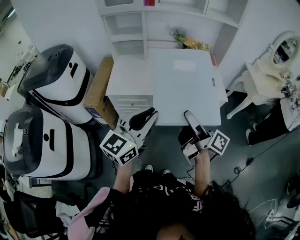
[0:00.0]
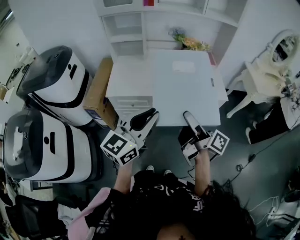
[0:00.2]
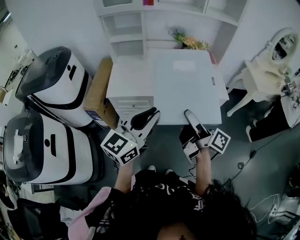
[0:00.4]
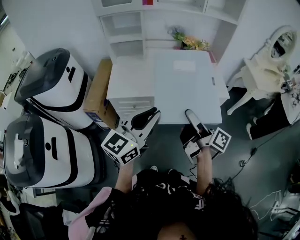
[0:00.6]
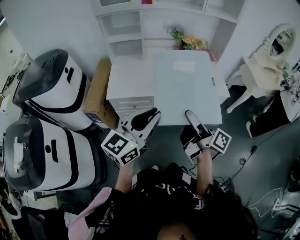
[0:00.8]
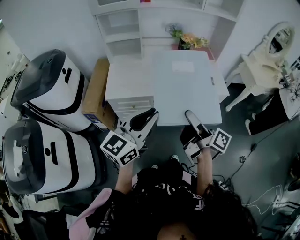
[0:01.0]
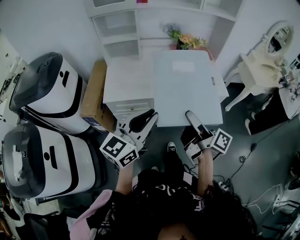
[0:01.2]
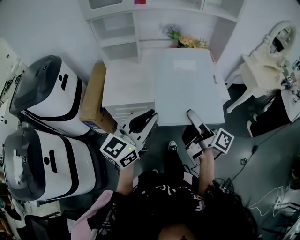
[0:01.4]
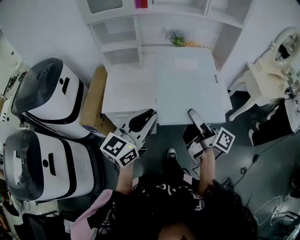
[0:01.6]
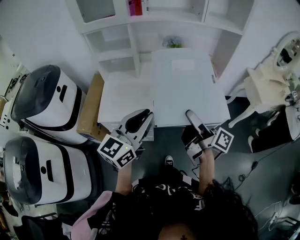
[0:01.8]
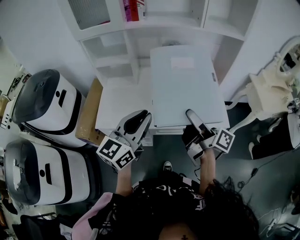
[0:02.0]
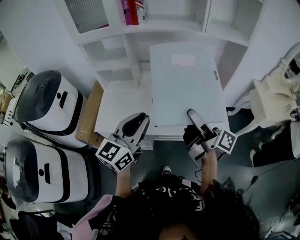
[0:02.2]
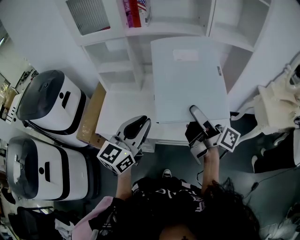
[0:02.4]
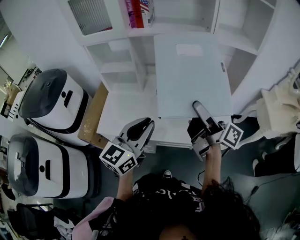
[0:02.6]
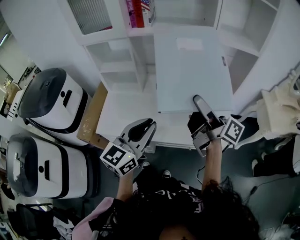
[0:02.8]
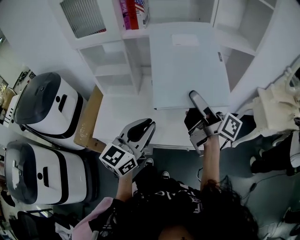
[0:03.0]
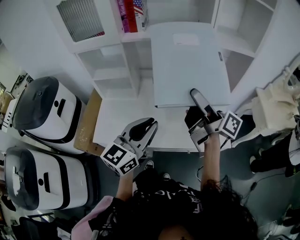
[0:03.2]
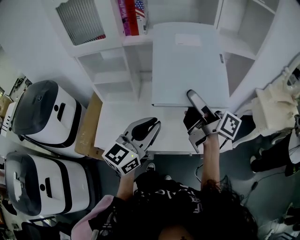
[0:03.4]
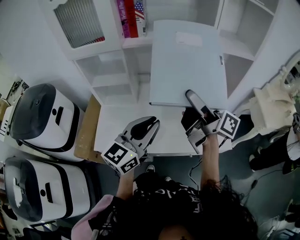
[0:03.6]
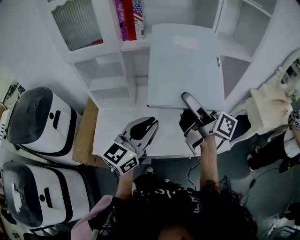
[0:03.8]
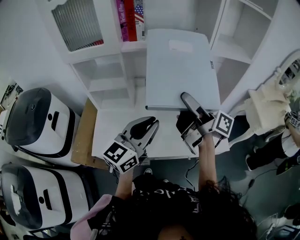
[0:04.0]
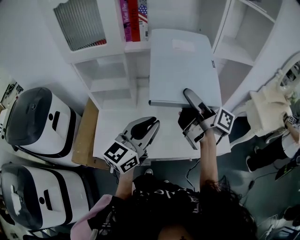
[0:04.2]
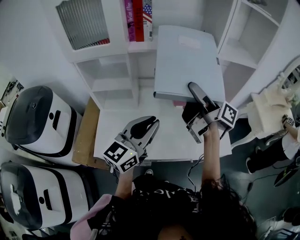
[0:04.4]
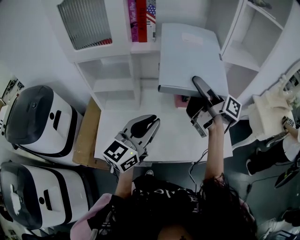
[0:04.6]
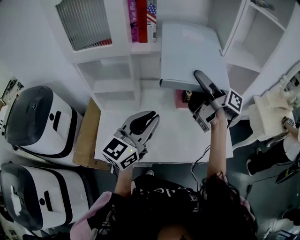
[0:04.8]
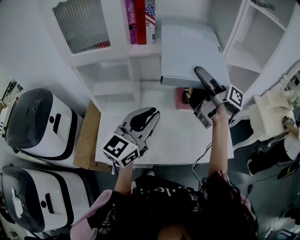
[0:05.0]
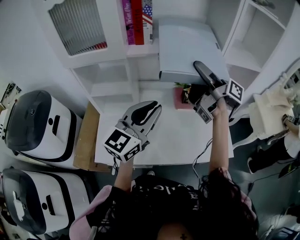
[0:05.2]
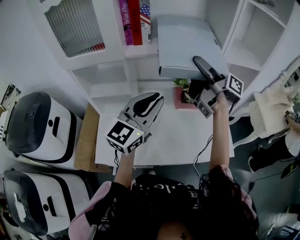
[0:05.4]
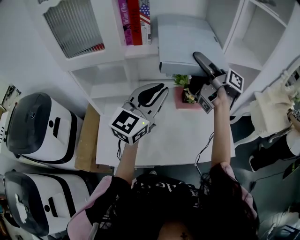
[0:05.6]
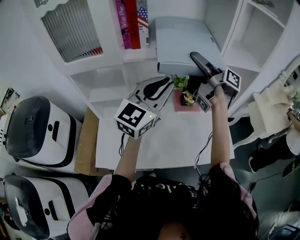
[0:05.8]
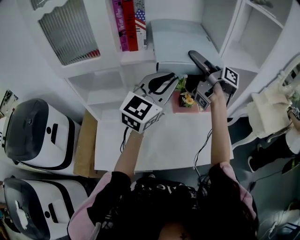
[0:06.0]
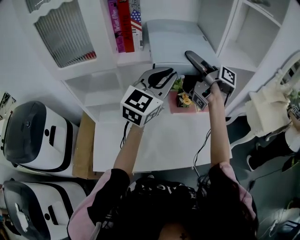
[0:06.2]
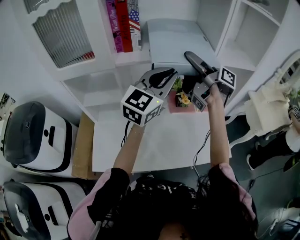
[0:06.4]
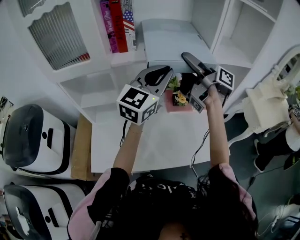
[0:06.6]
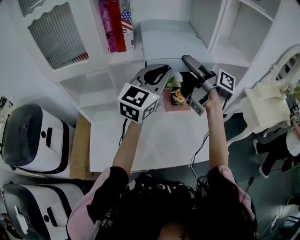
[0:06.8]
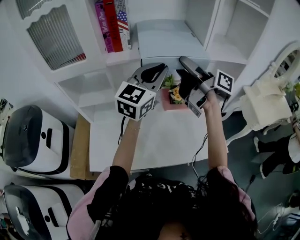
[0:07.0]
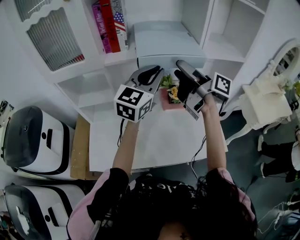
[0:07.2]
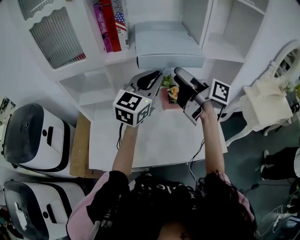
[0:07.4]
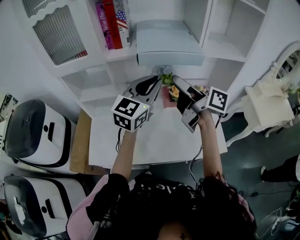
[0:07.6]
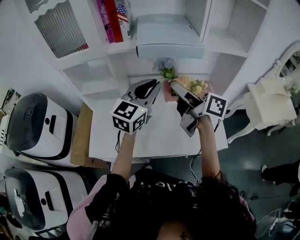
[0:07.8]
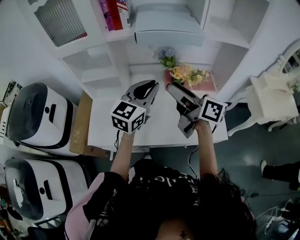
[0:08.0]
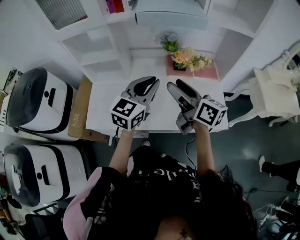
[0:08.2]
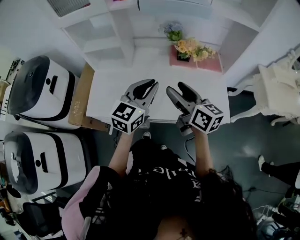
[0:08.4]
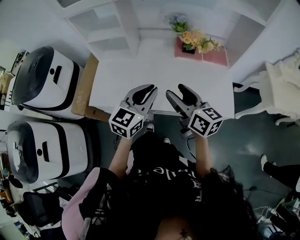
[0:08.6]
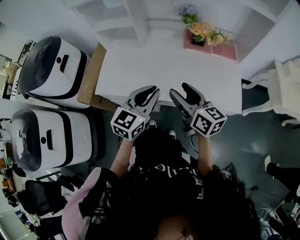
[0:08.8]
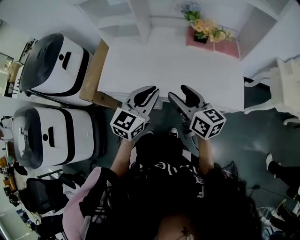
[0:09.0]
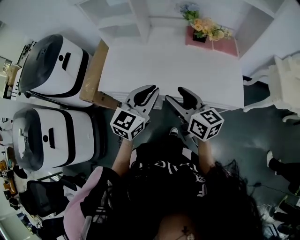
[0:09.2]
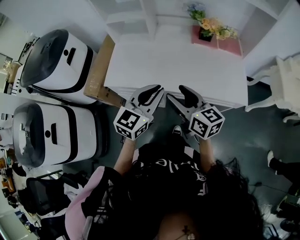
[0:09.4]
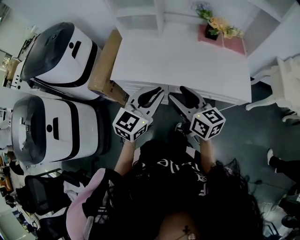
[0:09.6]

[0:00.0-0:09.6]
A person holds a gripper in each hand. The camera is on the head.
0.0 to 1.6 s: The two grippers go about 15 cm forward.
1.6 to 3.2 s: The right gripper shifts about 30 cm forward and upward, while the left gripper shifts approximately 20 cm forward and to the right.
3.2 to 4.8 s: The left gripper is displaced forward and to the left by about 10 cm. The right gripper shifts about 15 cm forward.
4.8 to 6.4 s: The left gripper shifts approximately 20 cm forward, to the right and upward. Meanwhile the right gripper goes approximately 10 cm forward.
6.4 to 8.0 s: Both grippers move backward and downward, approximately 20 cm. The right gripper swivels approximately 30 degrees.
8.0 to 9.6 s: The left gripper shifts roughly 35 cm backward, to the left and downward. Meanwhile the right gripper goes some 35 cm backward, downward and to the left, and changes its angle by about 20 degrees.

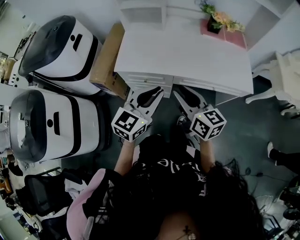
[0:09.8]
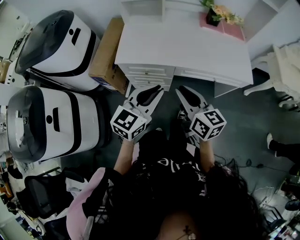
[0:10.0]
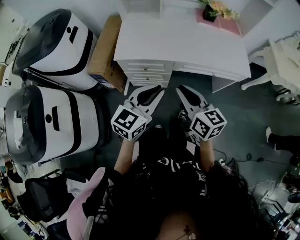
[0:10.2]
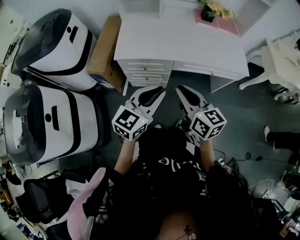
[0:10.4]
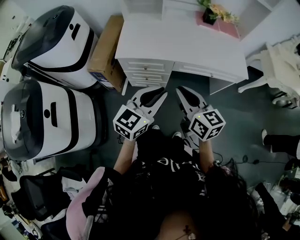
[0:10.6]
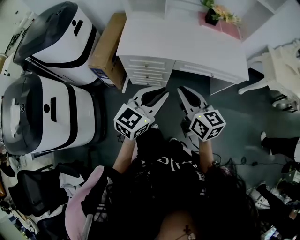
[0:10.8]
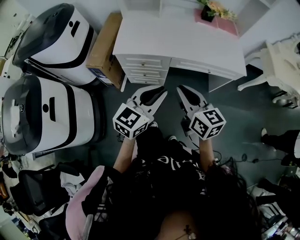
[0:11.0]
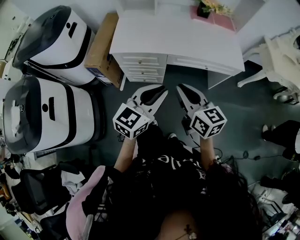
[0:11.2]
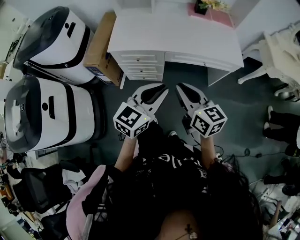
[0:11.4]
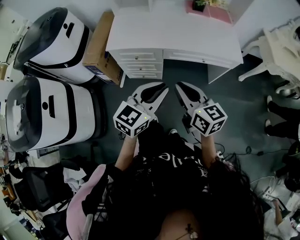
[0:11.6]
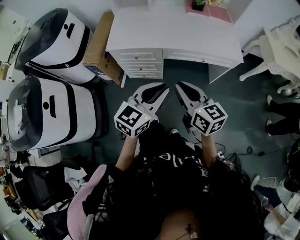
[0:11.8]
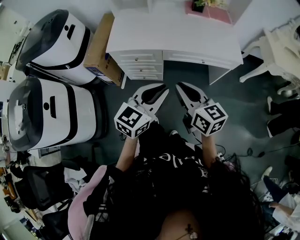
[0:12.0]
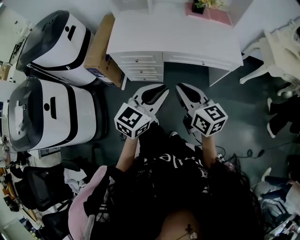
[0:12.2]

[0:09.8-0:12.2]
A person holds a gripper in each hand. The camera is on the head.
9.8 to 11.0 s: The two grippers go about 10 cm backward.
11.0 to 12.2 s: The two grippers go approximately 10 cm to the right.

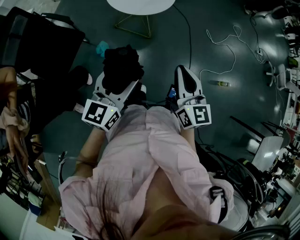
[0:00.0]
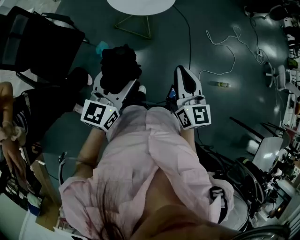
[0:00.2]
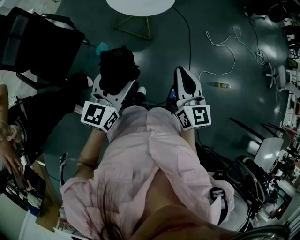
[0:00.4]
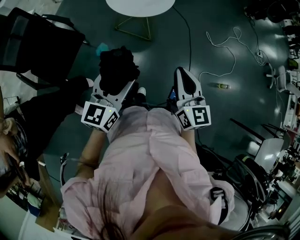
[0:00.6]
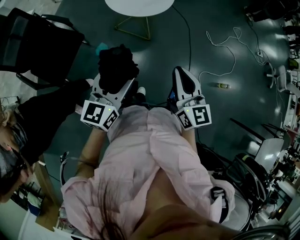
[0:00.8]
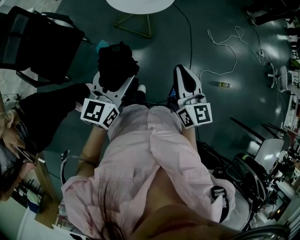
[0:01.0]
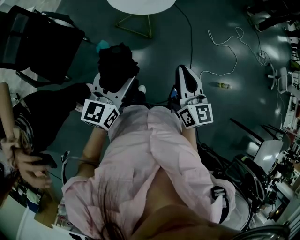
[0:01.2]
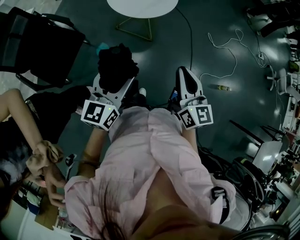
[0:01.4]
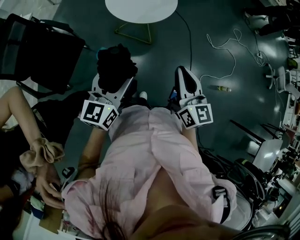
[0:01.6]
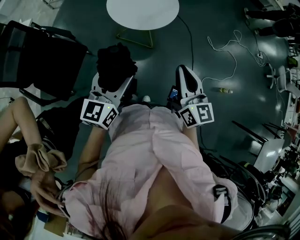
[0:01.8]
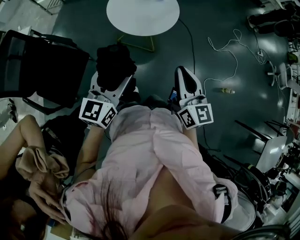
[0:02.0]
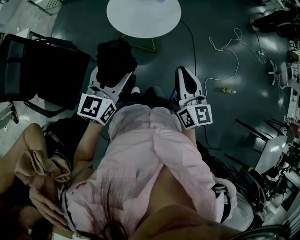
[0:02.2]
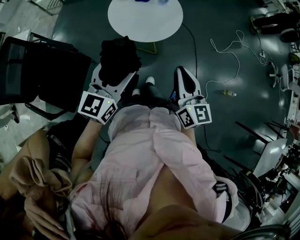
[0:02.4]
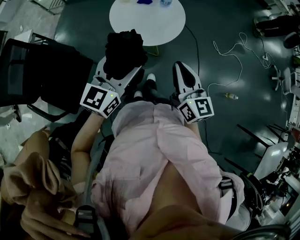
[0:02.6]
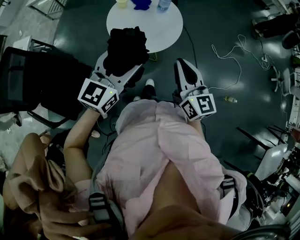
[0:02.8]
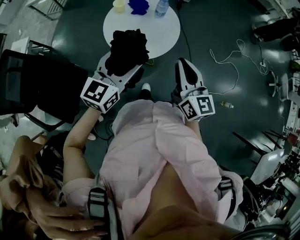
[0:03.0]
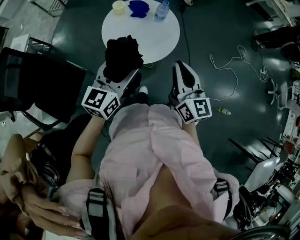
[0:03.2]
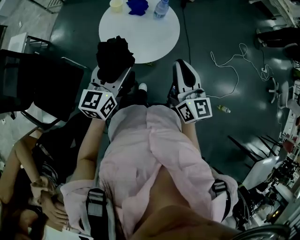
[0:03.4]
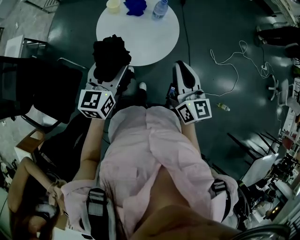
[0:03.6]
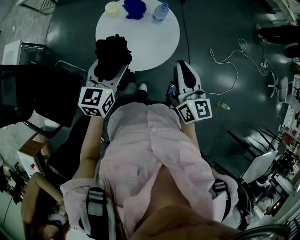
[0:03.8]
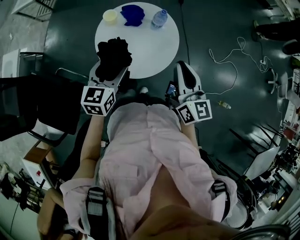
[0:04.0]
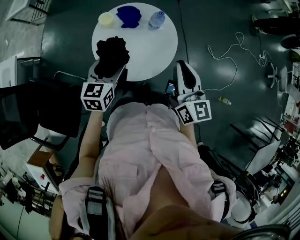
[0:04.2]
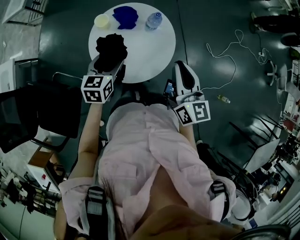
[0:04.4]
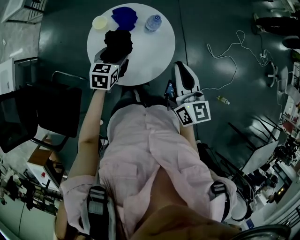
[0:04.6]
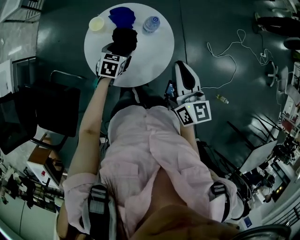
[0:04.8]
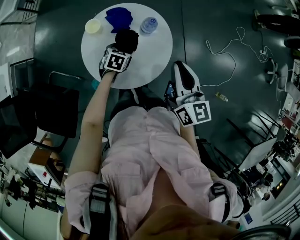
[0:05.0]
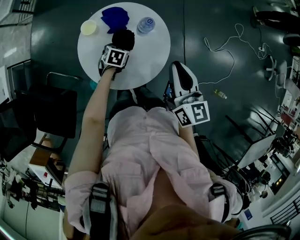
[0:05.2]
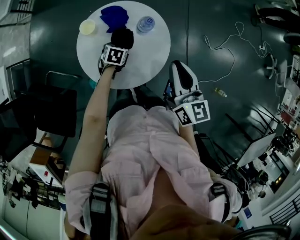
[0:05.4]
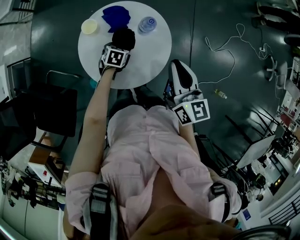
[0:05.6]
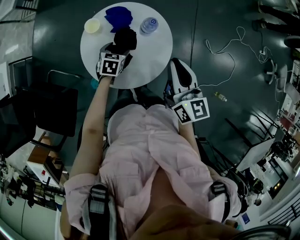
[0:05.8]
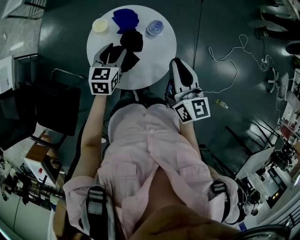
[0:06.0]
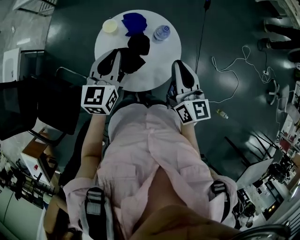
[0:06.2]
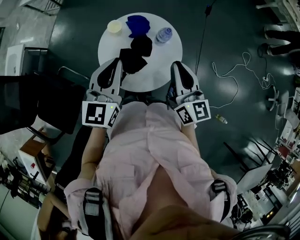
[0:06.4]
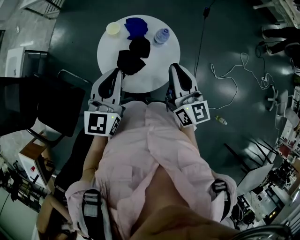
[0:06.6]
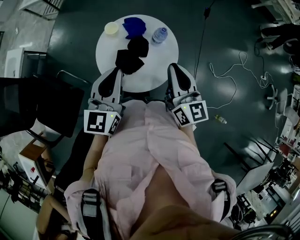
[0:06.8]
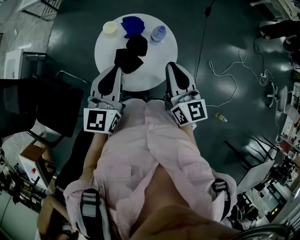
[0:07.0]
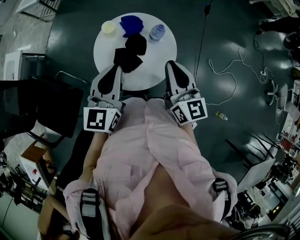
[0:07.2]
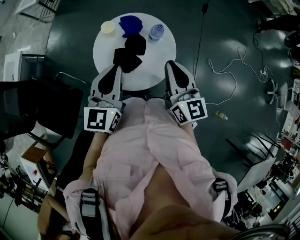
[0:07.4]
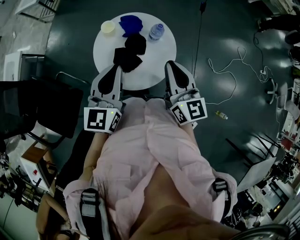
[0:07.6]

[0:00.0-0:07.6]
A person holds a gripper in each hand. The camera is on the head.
0.0 to 1.6 s: Both grippers travel together forward, about 5 cm.
1.6 to 3.0 s: Both grippers move forward, some 25 cm.
3.0 to 4.6 s: The left gripper shifts roughly 30 cm forward and downward, and points its fingers roughly 30 degrees further downward, while the right gripper moves forward, approximately 20 cm.
4.6 to 6.0 s: The left gripper goes downward and returns, roughly 15 cm each way.
6.0 to 7.6 s: The right gripper shifts by some 5 cm. The left gripper goes approximately 20 cm upward and backward, changes its angle by roughly 30 degrees, and closes up.

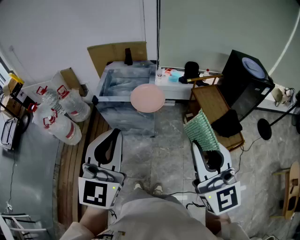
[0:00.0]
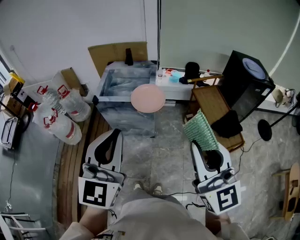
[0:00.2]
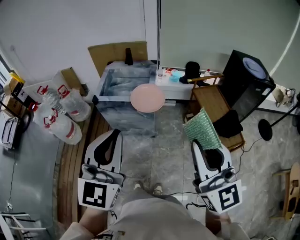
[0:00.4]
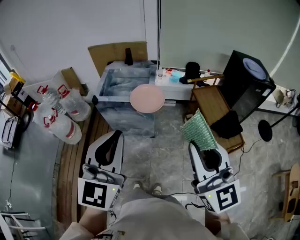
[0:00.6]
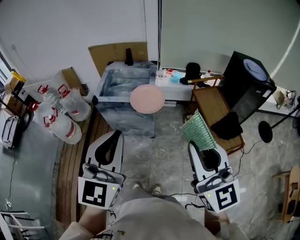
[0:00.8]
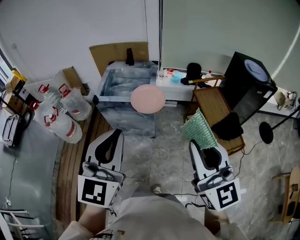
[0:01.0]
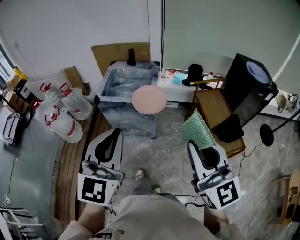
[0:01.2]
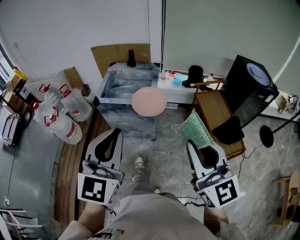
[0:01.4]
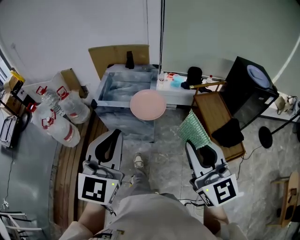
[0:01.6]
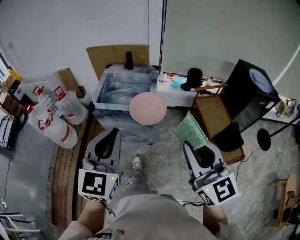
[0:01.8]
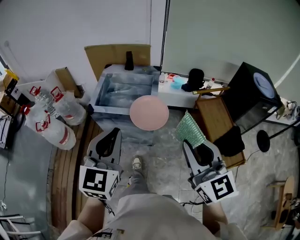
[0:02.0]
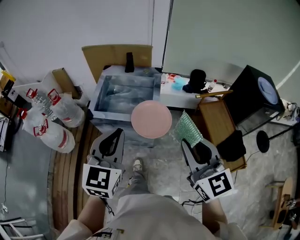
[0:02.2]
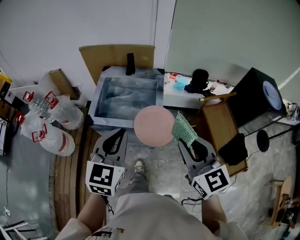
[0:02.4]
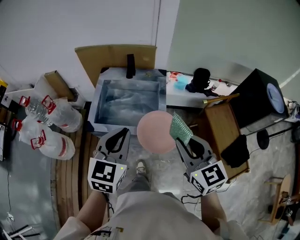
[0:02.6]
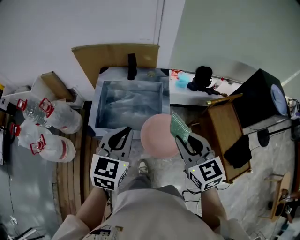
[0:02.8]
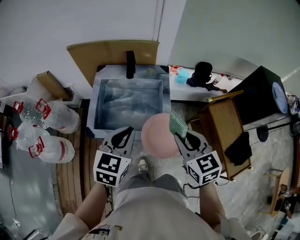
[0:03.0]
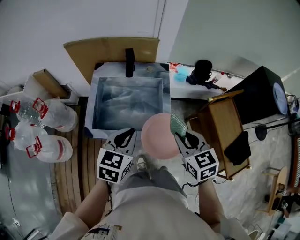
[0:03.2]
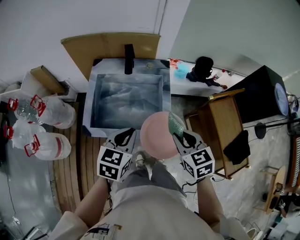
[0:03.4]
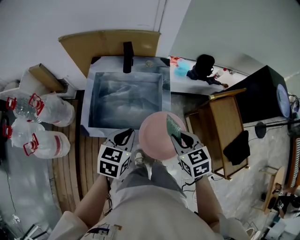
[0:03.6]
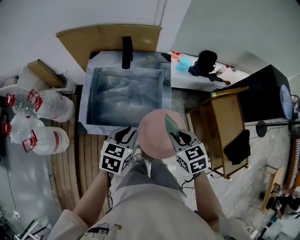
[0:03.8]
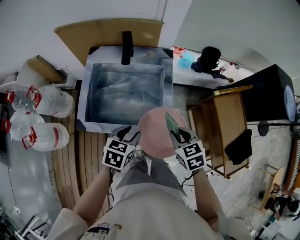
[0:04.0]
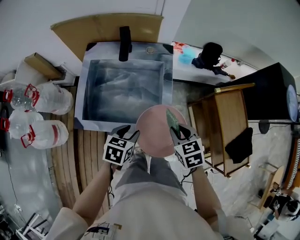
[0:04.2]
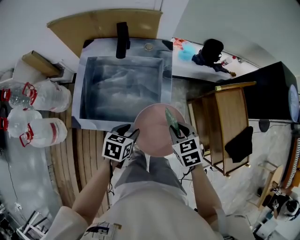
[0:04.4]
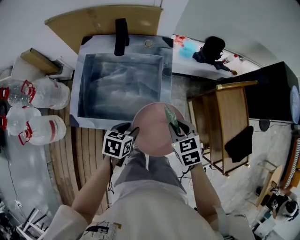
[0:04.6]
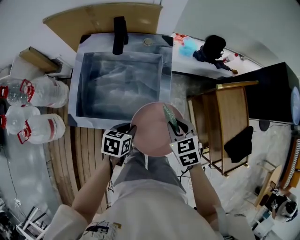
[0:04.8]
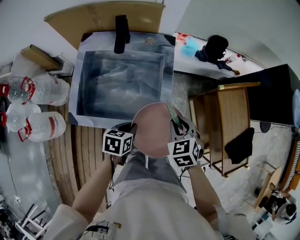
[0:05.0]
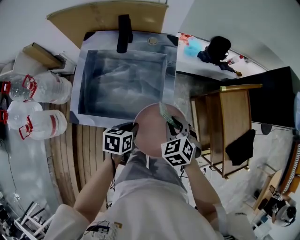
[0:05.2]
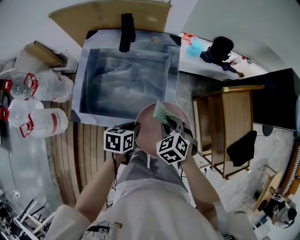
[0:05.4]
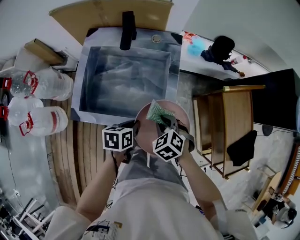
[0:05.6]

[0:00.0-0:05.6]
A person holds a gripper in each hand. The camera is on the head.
0.0 to 1.4 s: The right gripper ends up about 5 cm from where it was.
1.4 to 2.8 s: Both grippers are carried forward, roughly 40 cm. The left gripper changes its angle by approximately 30 degrees. Meanwhile the right gripper swivels roughly 30 degrees.
2.8 to 4.2 s: Both grippers move downward, approximately 25 cm. The left gripper swivels roughly 40 degrees, and opens its fingers. The right gripper turns by roughly 30 degrees.
4.2 to 5.6 s: The left gripper travels downward by about 5 cm, turns by approximately 30 degrees, and closes up. The right gripper is displaced downward and to the left by some 10 cm, and swivels about 30 degrees.
